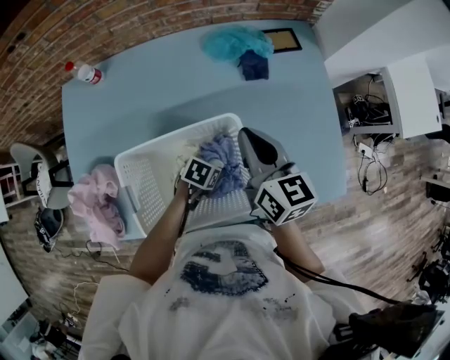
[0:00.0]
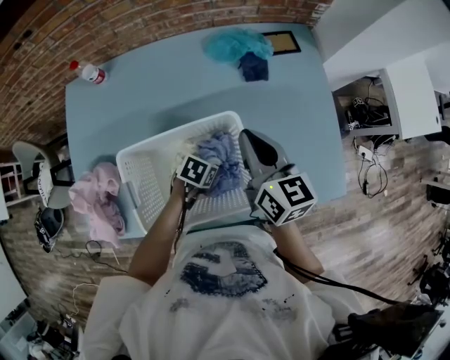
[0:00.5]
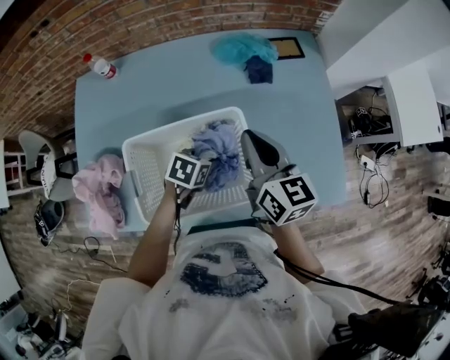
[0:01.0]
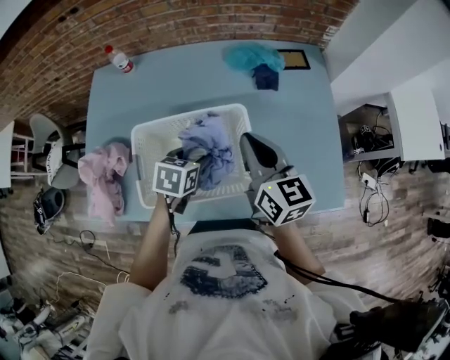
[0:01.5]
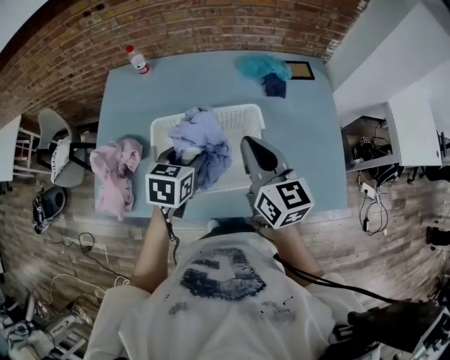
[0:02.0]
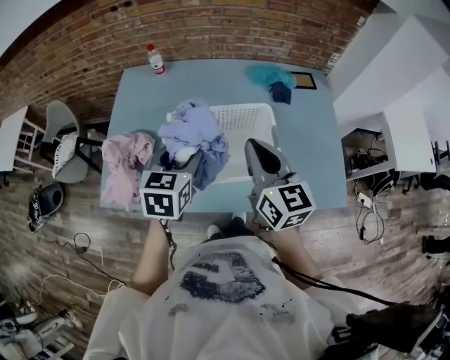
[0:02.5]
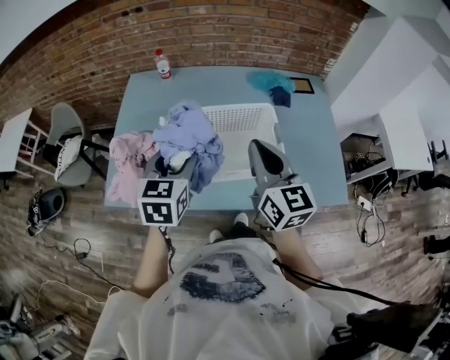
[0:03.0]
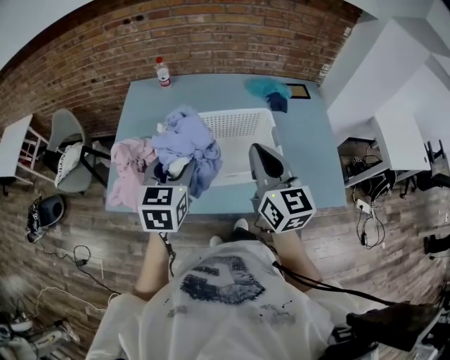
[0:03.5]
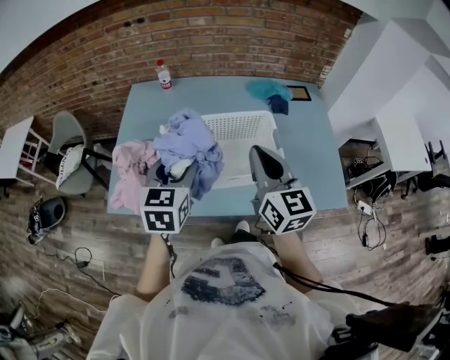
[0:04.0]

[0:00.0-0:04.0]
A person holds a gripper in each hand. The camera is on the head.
0:00.0 to 0:02.0: The right gripper shifts by roughly 15 cm. The left gripper travels upward by roughly 25 cm, and swivels roughly 40 degrees.
0:02.0 to 0:04.0: Both grippers travel together backward, to the left and upward, approximately 15 cm. The left gripper changes its angle by about 20 degrees.

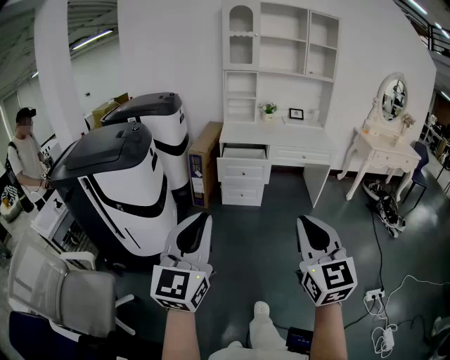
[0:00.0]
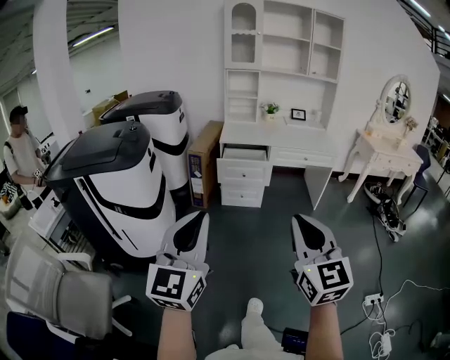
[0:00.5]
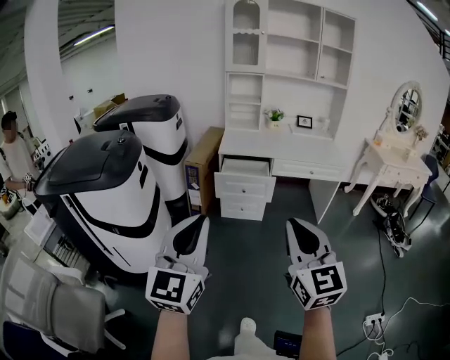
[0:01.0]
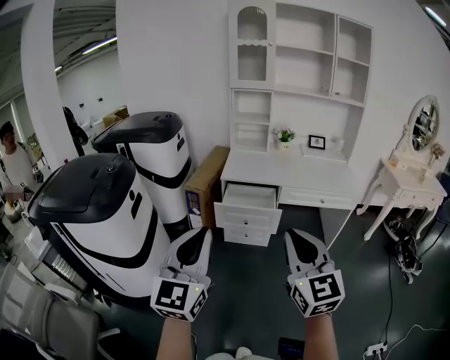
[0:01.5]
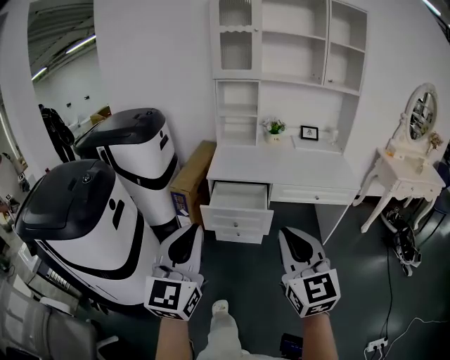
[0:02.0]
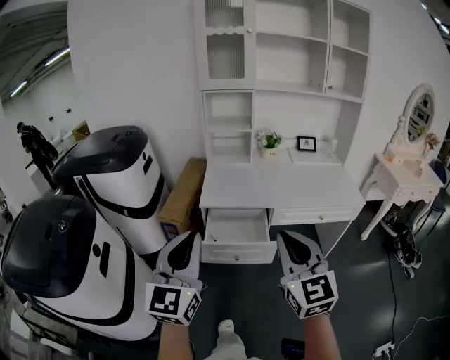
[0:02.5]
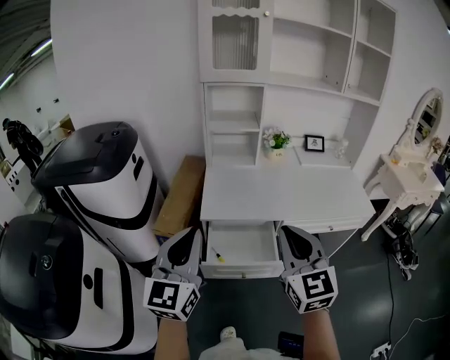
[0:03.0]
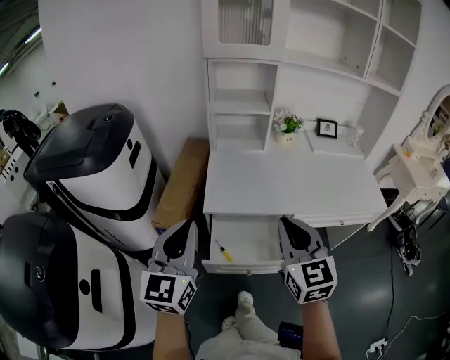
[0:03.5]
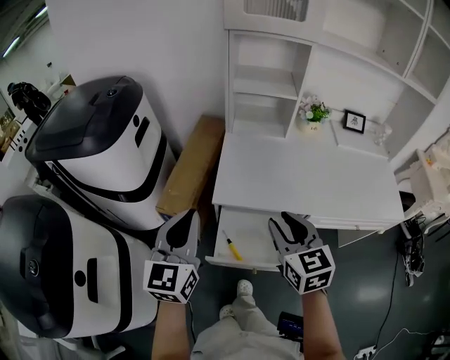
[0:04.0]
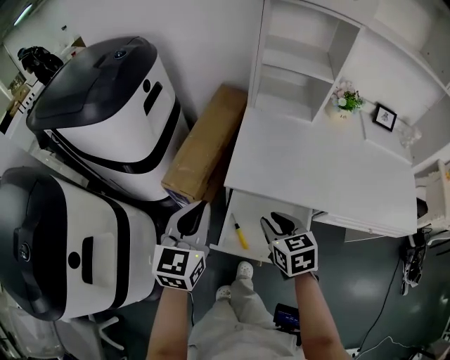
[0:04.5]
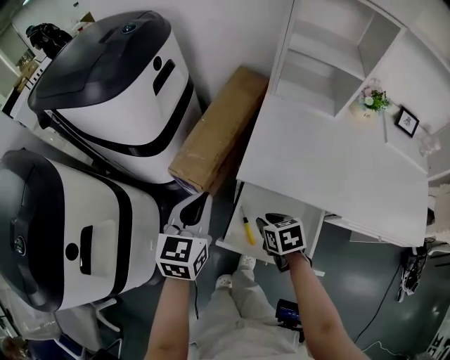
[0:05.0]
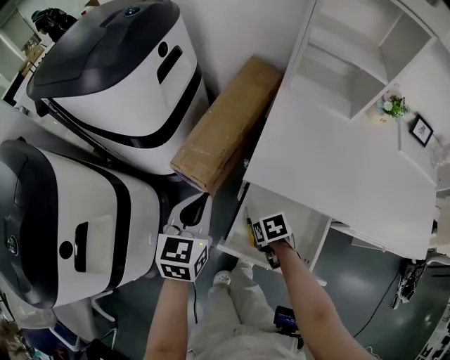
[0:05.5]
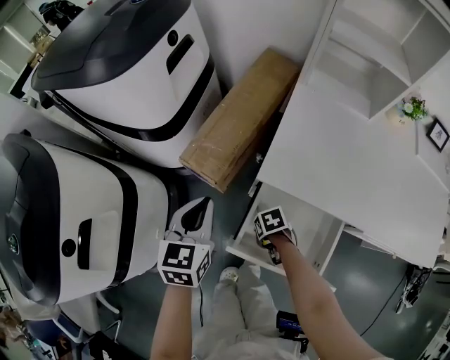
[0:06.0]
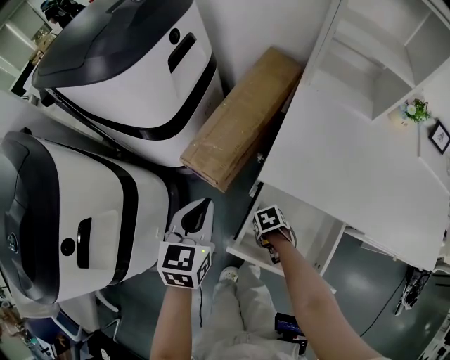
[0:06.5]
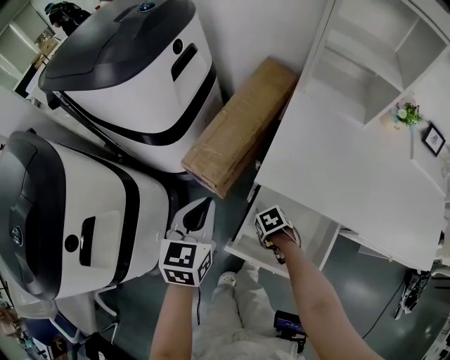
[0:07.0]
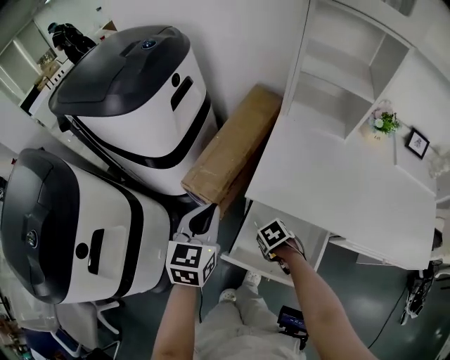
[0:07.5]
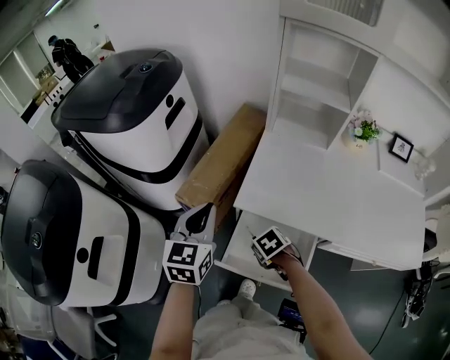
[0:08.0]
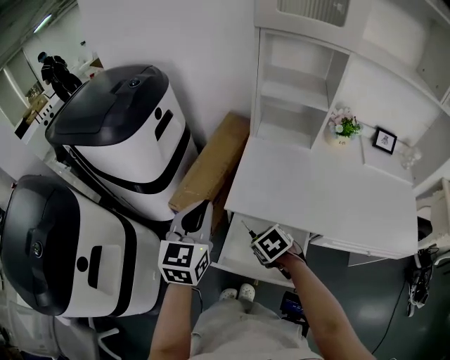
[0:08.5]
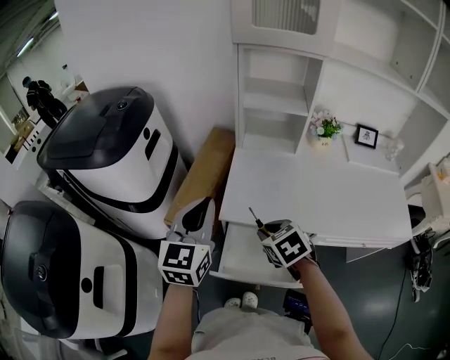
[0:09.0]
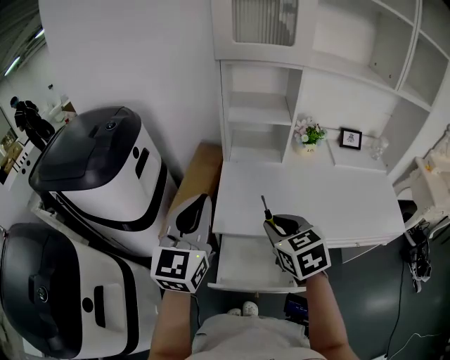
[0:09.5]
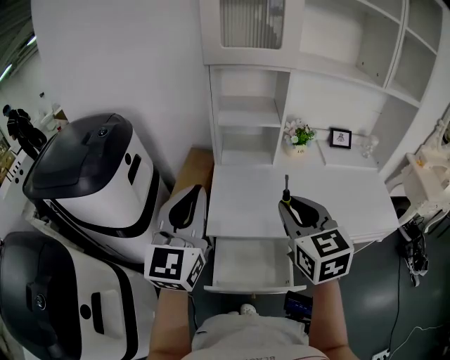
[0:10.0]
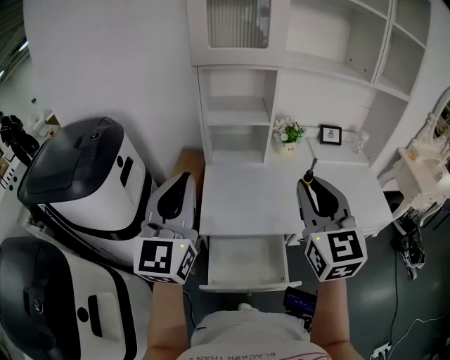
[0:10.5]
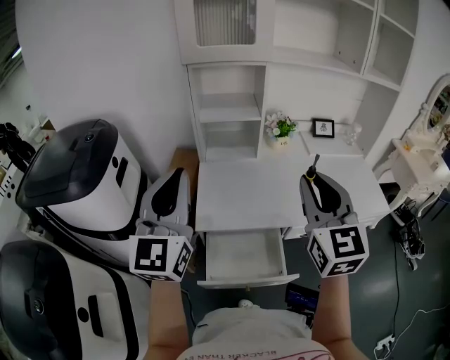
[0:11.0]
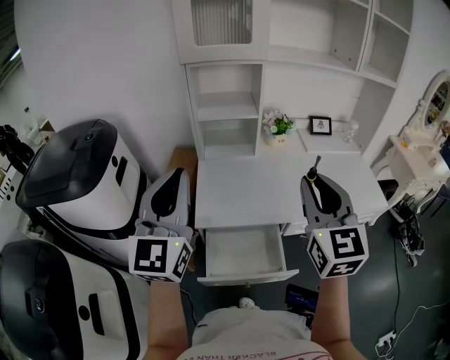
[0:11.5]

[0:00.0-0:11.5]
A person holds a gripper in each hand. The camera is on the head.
0:00.0 to 0:02.0: Both grippers are carried forward, approximately 40 cm.
0:02.0 to 0:04.0: The two grippers travel together, forward, approximately 50 cm. The right gripper turns by some 30 degrees, and opens up.
0:04.0 to 0:06.0: The right gripper travels downward by some 40 cm, and points its fingers roughly 50 degrees further downward. Meanwhile the left gripper travels downward by some 20 cm, and turns by some 30 degrees.
0:06.0 to 0:07.5: Both grippers move upward, approximately 10 cm.
0:07.5 to 0:09.5: The right gripper moves upward, some 35 cm, and points its fingers some 40 degrees further upward. The left gripper travels upward by roughly 20 cm, and changes its angle by roughly 30 degrees.
0:09.5 to 0:11.5: The right gripper heads upward and to the right, covering some 20 cm, and angles its fingers upward, by some 30 degrees; the left gripper moves upward, approximately 10 cm.

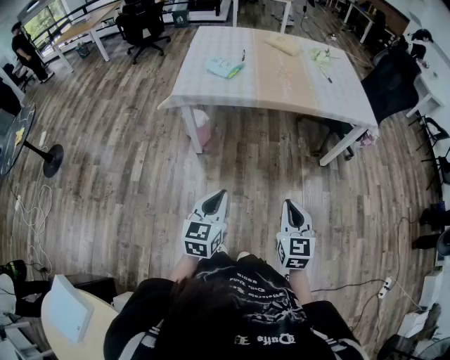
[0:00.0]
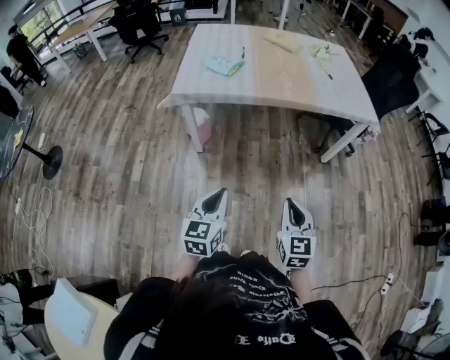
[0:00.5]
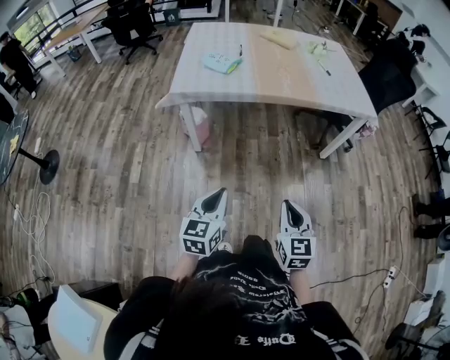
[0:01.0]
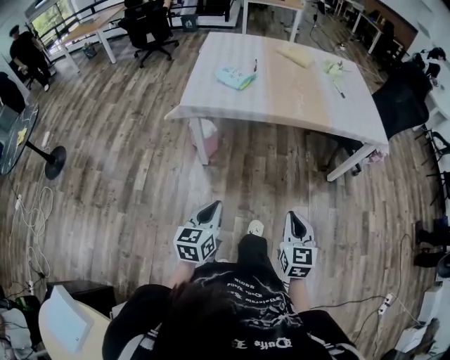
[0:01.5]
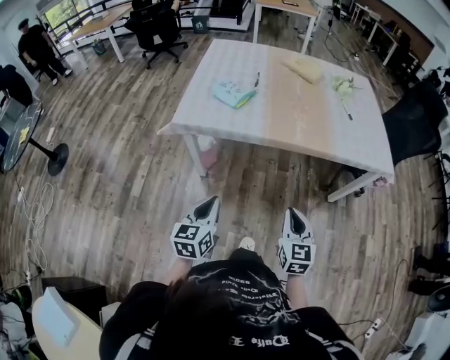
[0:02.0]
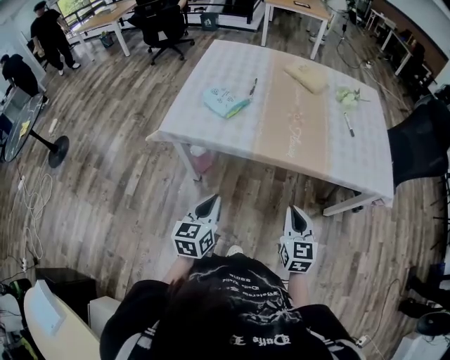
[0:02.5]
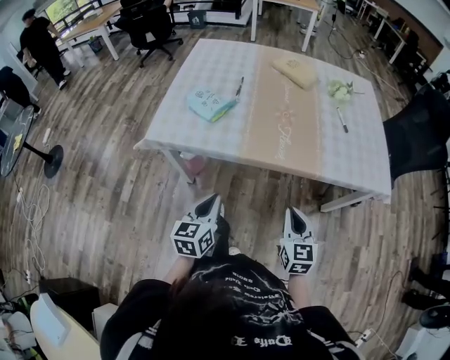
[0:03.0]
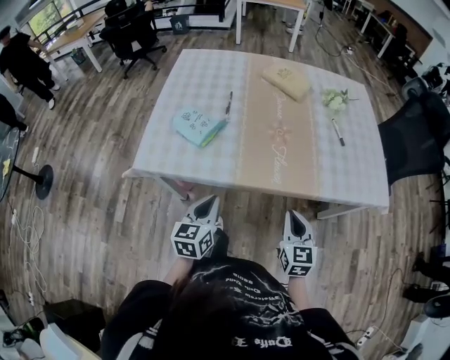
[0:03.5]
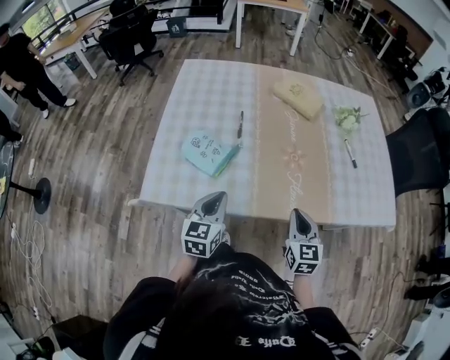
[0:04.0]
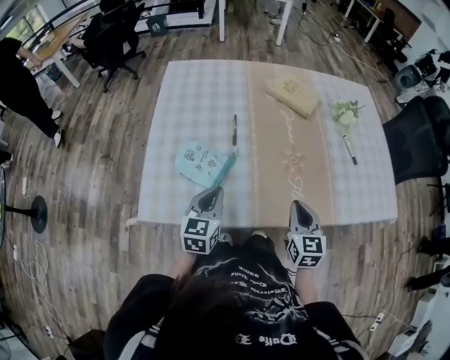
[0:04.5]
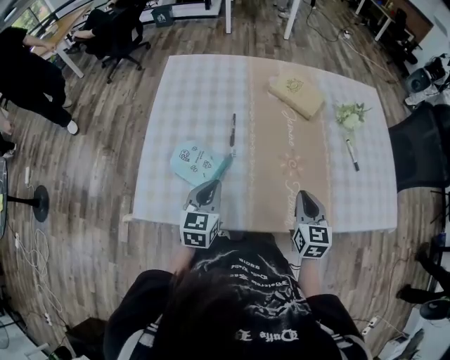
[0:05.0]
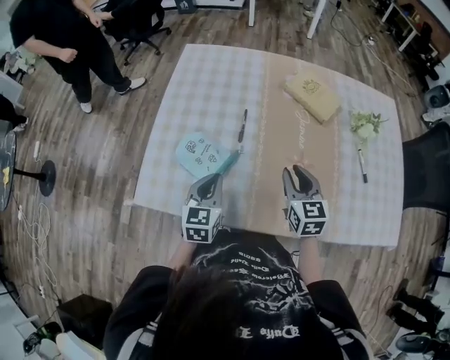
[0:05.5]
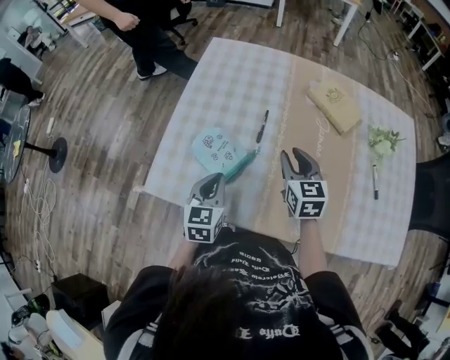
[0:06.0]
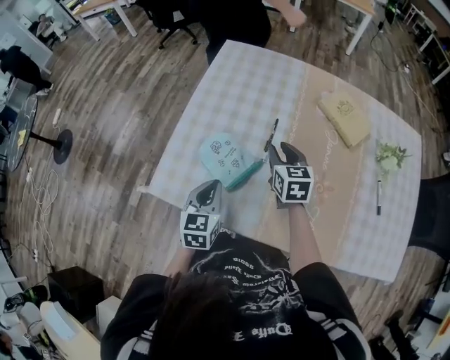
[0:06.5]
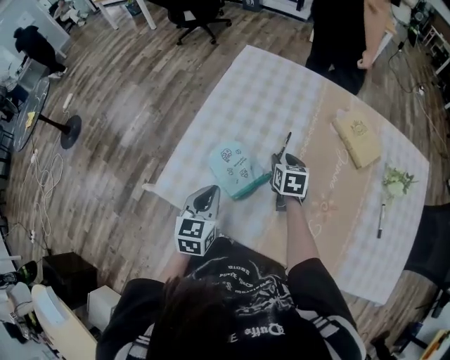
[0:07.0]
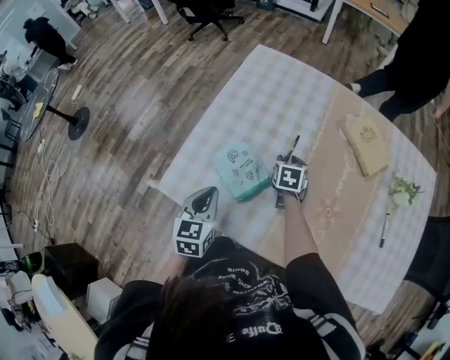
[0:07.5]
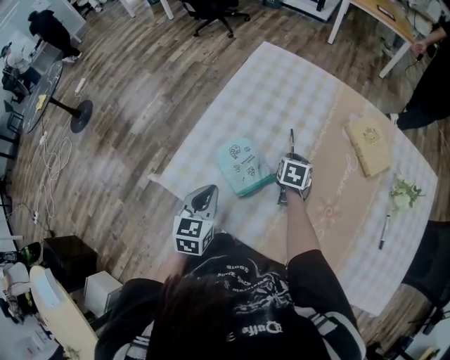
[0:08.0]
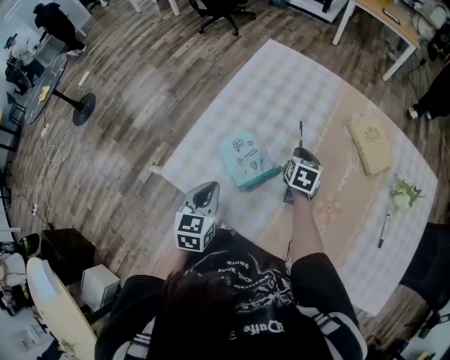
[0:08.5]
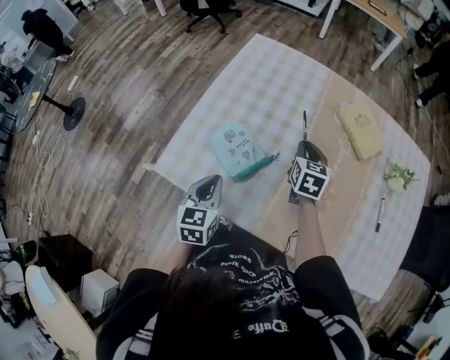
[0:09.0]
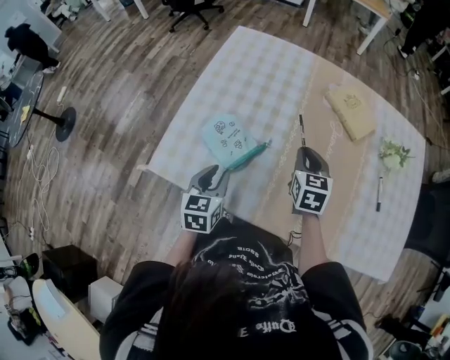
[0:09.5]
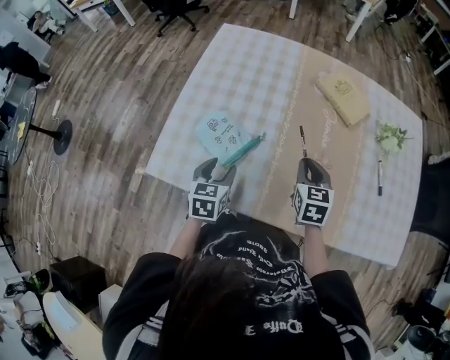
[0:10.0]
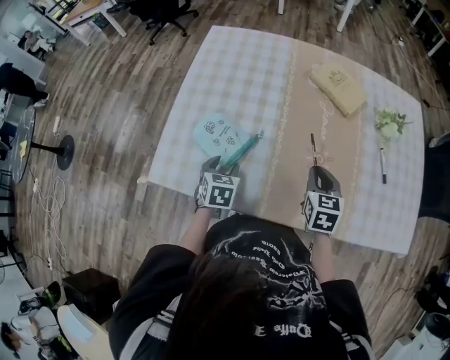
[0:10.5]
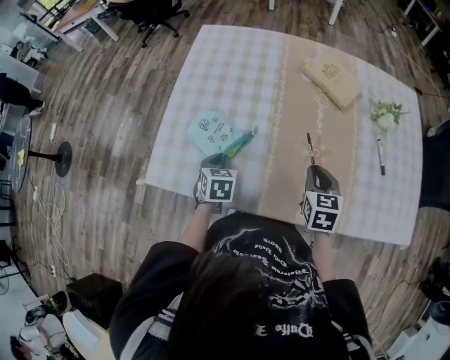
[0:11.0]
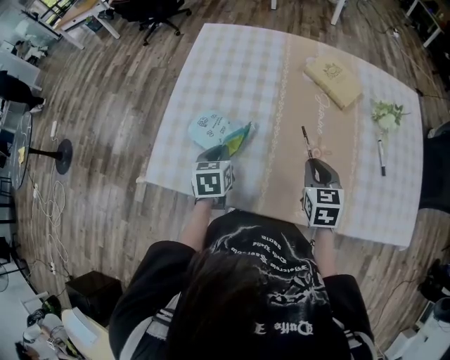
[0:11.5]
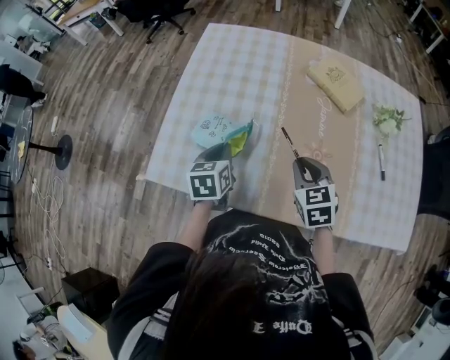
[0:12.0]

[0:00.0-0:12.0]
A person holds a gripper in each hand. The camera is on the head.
0:00.0 to 0:02.0: Both grippers travel together forward, approximately 25 cm.
0:02.0 to 0:04.0: The two grippers travel together, forward, roughly 40 cm.
0:04.0 to 0:06.0: The right gripper heads forward, covering roughly 25 cm, and opens its fingers, while the left gripper moves forward, roughly 10 cm.
0:06.0 to 0:08.0: The right gripper travels downward and forward by approximately 20 cm, and changes its angle by about 30 degrees. Meanwhile the left gripper shifts roughly 5 cm to the left.
0:08.0 to 0:10.0: The left gripper moves to the right, about 10 cm, and opens up. Meanwhile the right gripper is displaced backward, to the right and upward by some 25 cm.
0:10.0 to 0:12.0: The left gripper ends up roughly 5 cm from where it was, and closes up.
